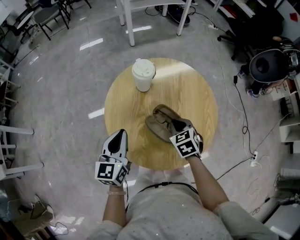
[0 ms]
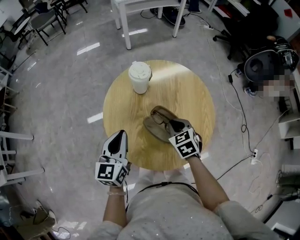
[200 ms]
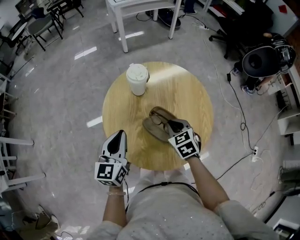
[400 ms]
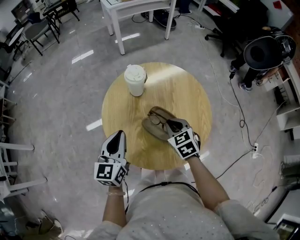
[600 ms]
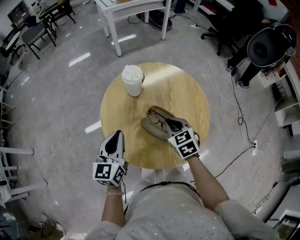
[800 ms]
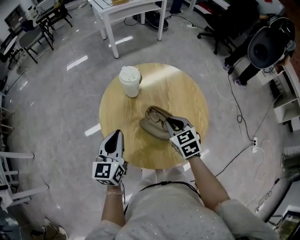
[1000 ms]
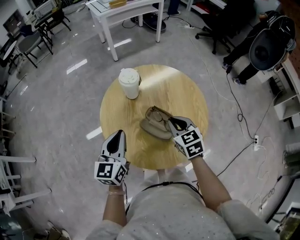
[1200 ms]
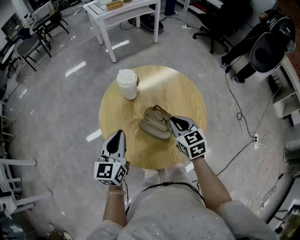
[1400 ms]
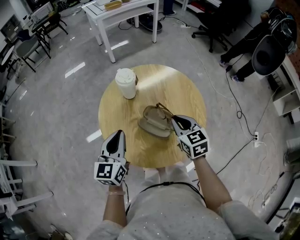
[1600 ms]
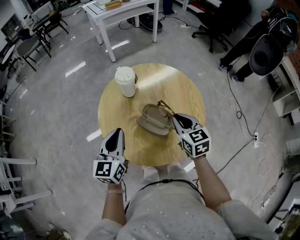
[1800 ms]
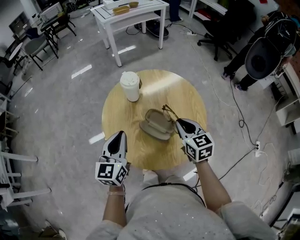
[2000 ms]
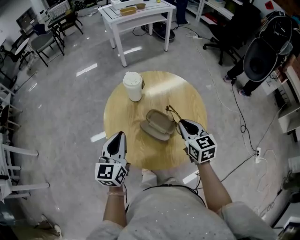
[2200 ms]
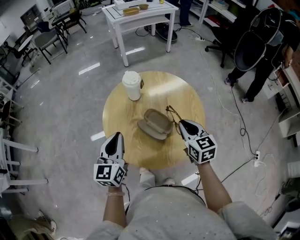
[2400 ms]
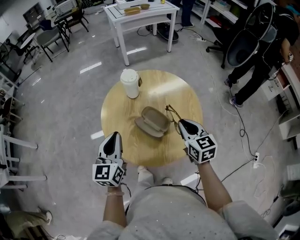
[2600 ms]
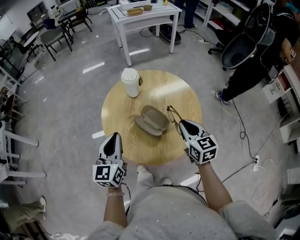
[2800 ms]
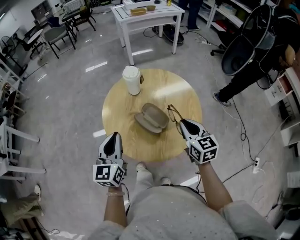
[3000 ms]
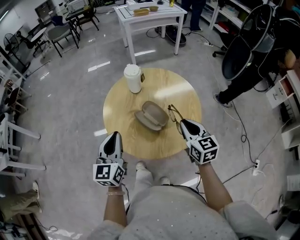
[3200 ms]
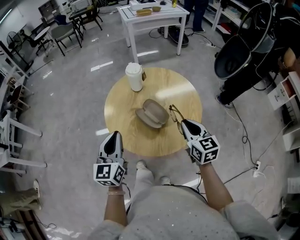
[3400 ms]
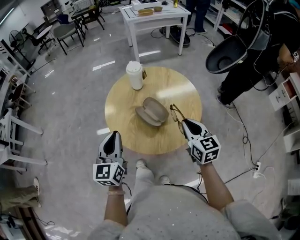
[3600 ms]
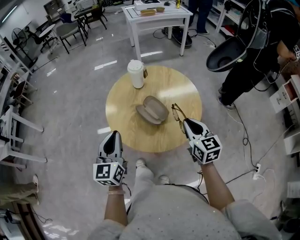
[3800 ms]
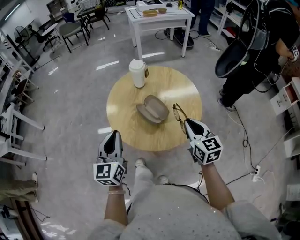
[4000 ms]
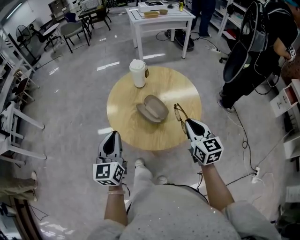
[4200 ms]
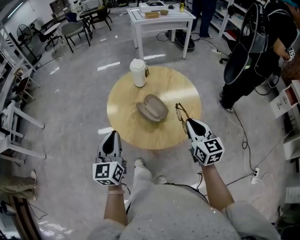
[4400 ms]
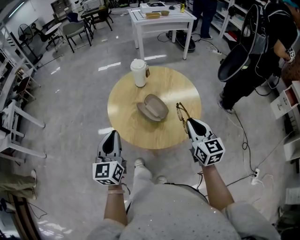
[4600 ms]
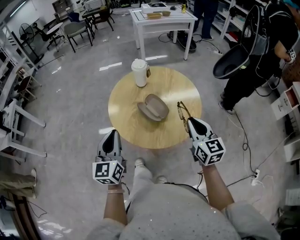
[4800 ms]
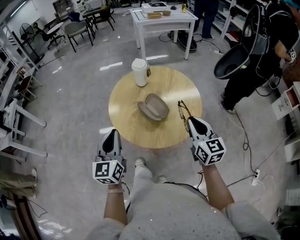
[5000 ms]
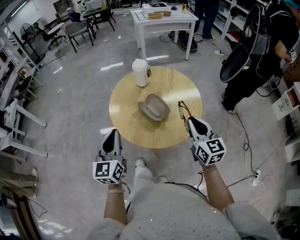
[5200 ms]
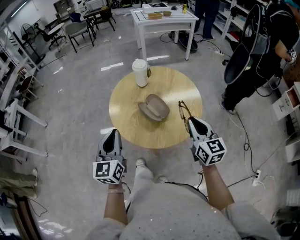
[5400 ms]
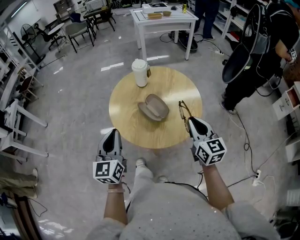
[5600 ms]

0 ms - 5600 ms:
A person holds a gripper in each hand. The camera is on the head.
0 ms - 1400 ms: The right gripper goes approximately 10 cm upward, and rotates some 20 degrees.
1400 ms - 2800 ms: The left gripper is displaced backward by approximately 5 cm. Meanwhile the right gripper moves to the right, about 5 cm.
2800 ms - 4200 ms: Both grippers travel together backward, approximately 10 cm.
4200 ms - 5600 ms: The grippers make only small movements.

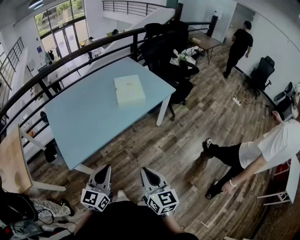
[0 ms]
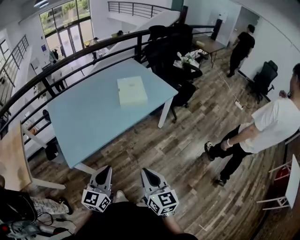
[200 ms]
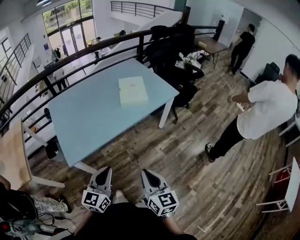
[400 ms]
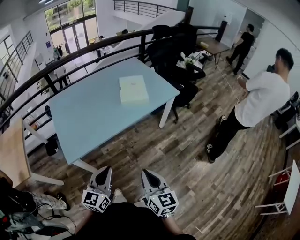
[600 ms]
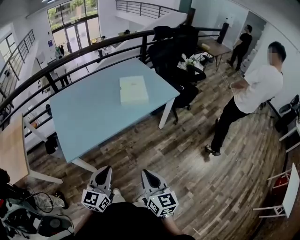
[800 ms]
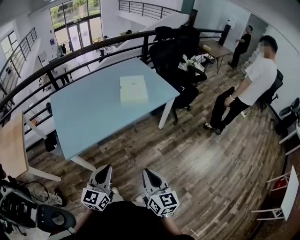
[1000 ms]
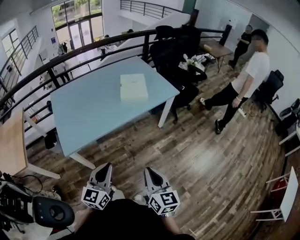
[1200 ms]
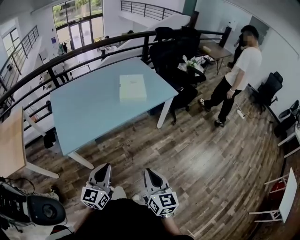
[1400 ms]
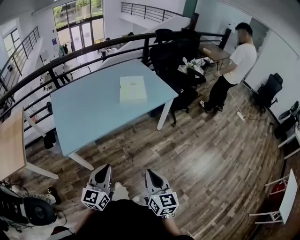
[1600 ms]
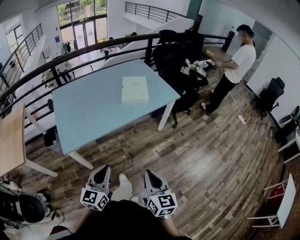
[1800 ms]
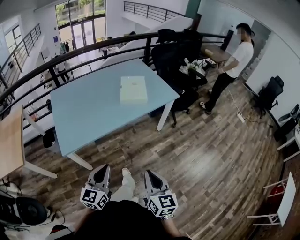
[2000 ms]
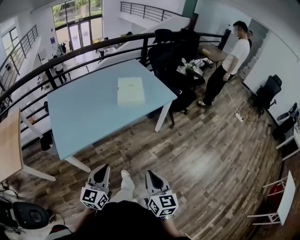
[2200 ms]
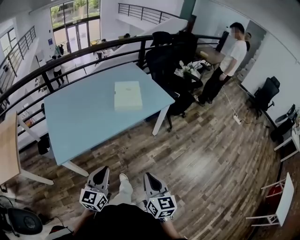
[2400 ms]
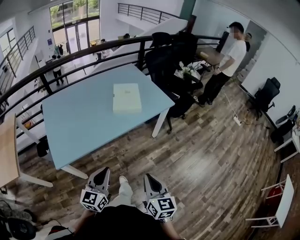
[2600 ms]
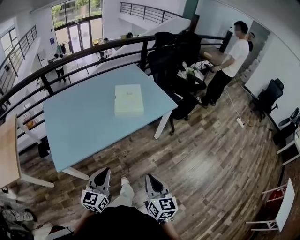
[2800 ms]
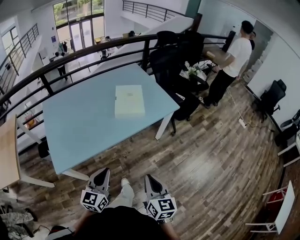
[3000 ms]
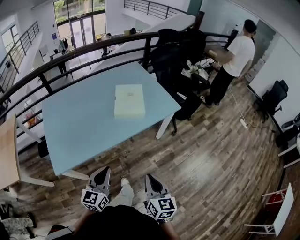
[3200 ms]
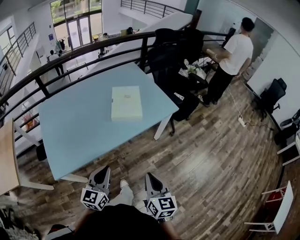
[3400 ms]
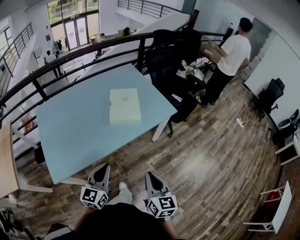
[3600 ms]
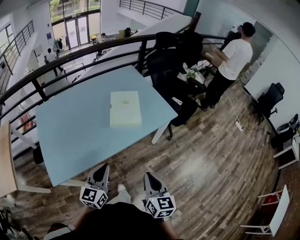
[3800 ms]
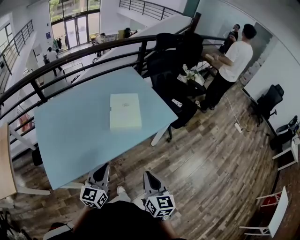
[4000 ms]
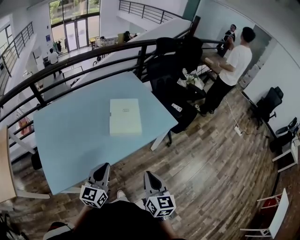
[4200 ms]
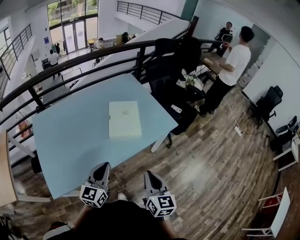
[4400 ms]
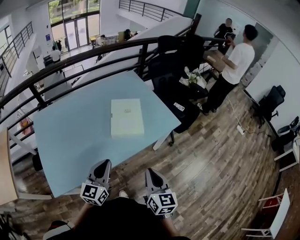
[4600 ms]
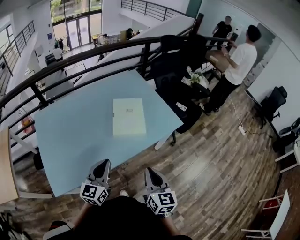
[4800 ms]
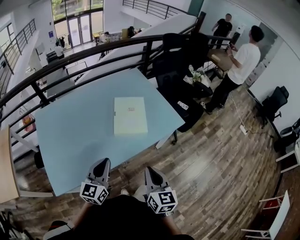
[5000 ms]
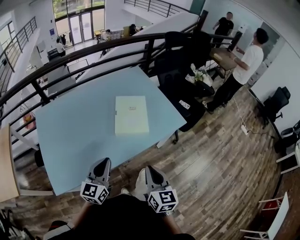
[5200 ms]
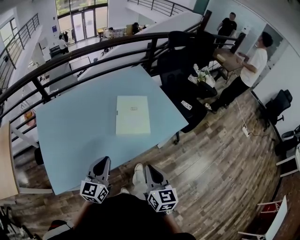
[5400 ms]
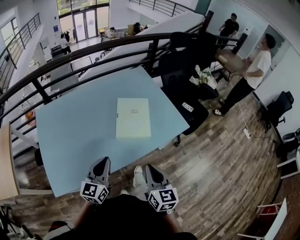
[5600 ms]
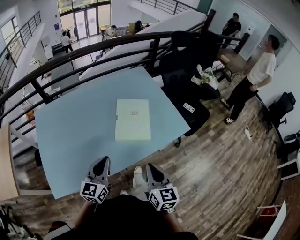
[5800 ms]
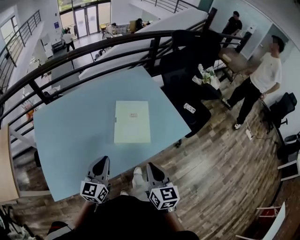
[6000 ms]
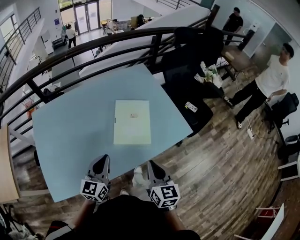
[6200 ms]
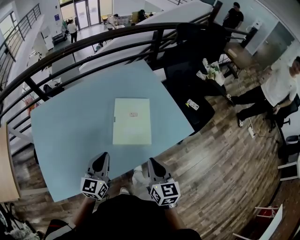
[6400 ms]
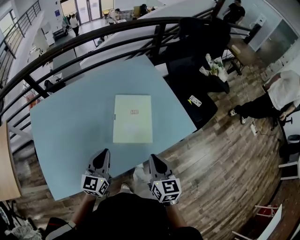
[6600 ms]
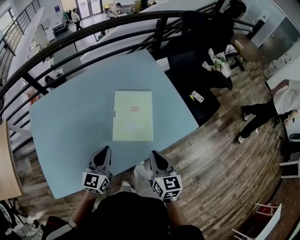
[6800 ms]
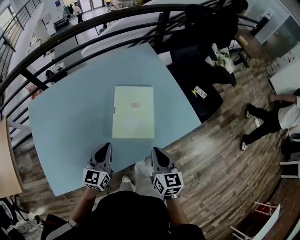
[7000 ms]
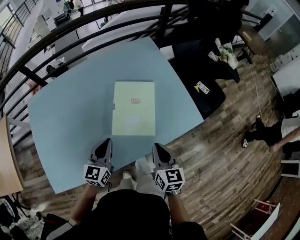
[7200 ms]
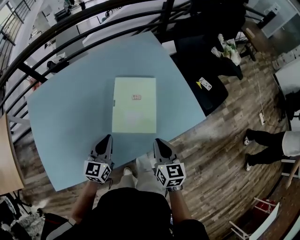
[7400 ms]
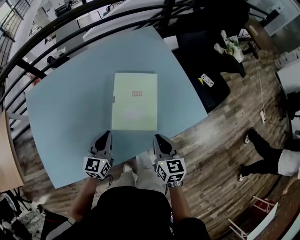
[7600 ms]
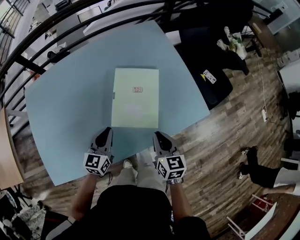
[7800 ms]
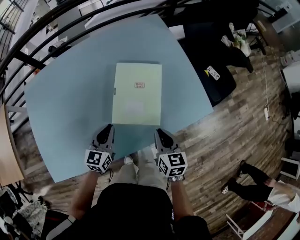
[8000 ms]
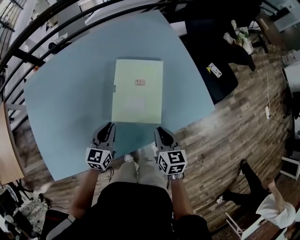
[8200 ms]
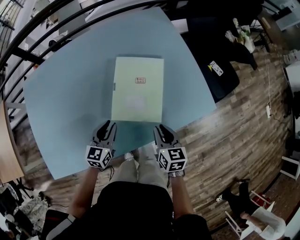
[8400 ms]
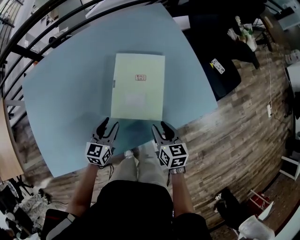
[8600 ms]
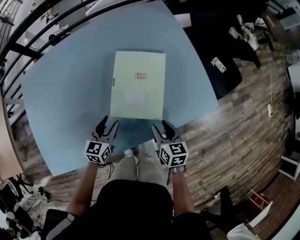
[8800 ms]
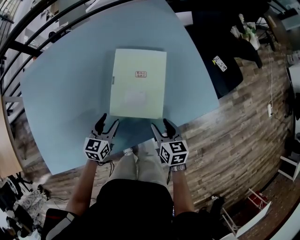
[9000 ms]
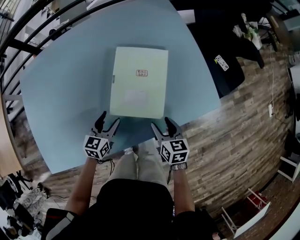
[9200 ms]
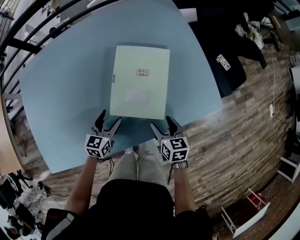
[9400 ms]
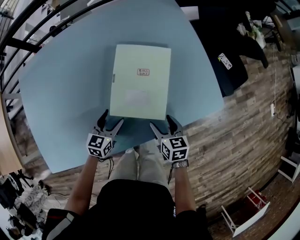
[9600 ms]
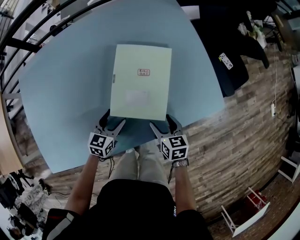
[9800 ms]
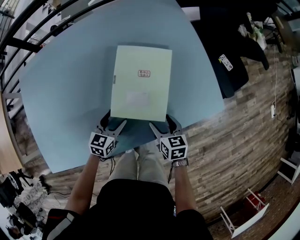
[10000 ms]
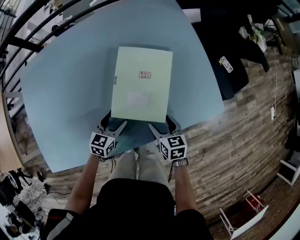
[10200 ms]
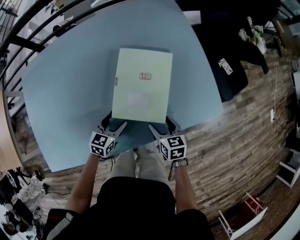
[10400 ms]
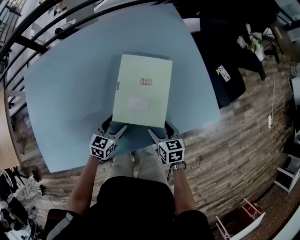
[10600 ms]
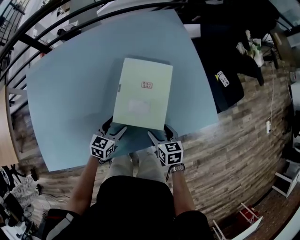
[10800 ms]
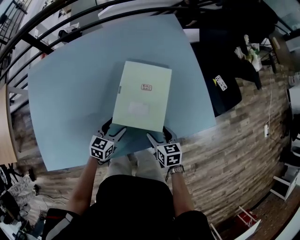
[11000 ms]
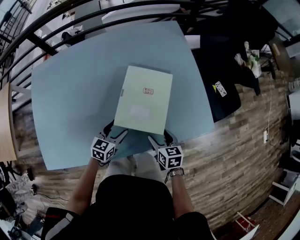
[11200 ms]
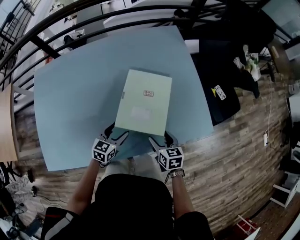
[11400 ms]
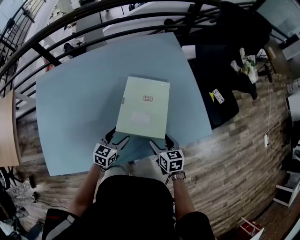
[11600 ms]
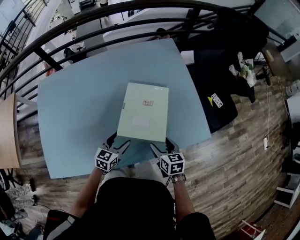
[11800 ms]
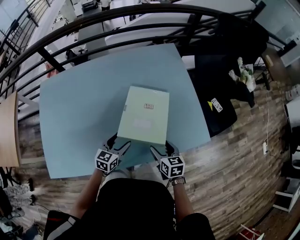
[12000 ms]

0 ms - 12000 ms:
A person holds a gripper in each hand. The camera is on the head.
0 ms - 1600 ms: The right gripper shifts about 10 cm to the right; the left gripper goes about 10 cm to the right and backward.
1600 ms - 3000 ms: Both grippers move forward, some 15 cm.
3000 ms - 4400 ms: Both grippers move forward, some 20 cm.
4400 ms - 6000 ms: Both grippers travel together forward, roughly 15 cm.
6000 ms - 7600 ms: The left gripper travels downward and forward by roughly 20 cm; the right gripper shifts roughly 20 cm forward and downward.
7600 ms - 9000 ms: The two grippers go about 15 cm downward. The right gripper opens its fingers; the left gripper opens its fingers.
9000 ms - 10400 ms: The grippers move only a little.
10400 ms - 12000 ms: The two grippers go some 10 cm upward.

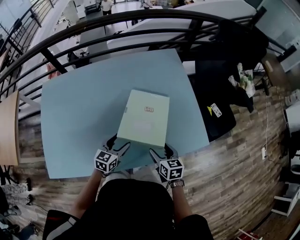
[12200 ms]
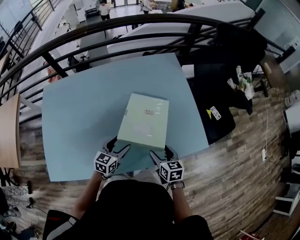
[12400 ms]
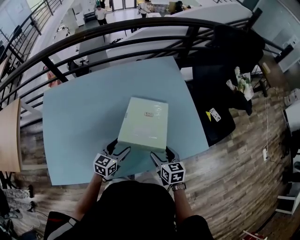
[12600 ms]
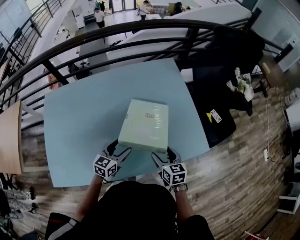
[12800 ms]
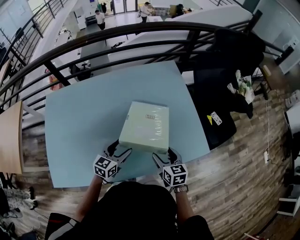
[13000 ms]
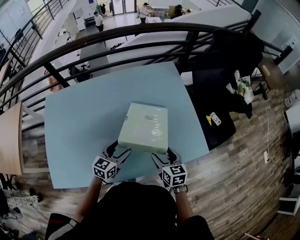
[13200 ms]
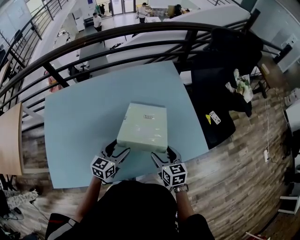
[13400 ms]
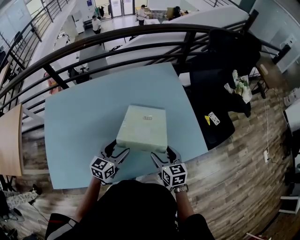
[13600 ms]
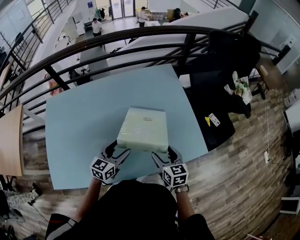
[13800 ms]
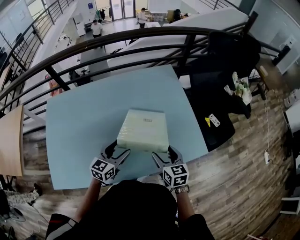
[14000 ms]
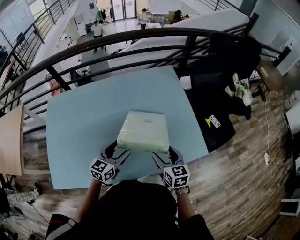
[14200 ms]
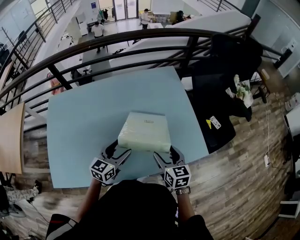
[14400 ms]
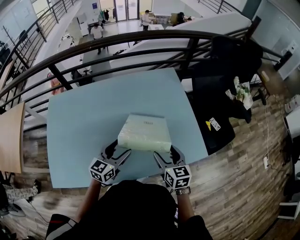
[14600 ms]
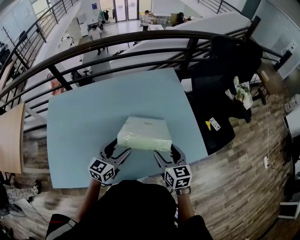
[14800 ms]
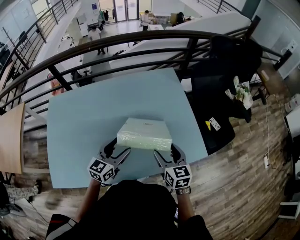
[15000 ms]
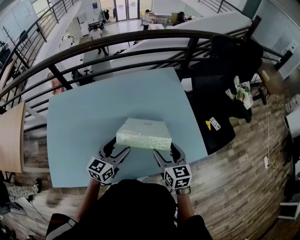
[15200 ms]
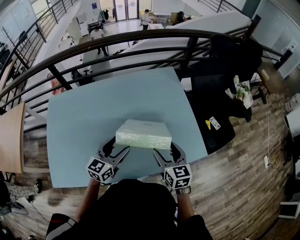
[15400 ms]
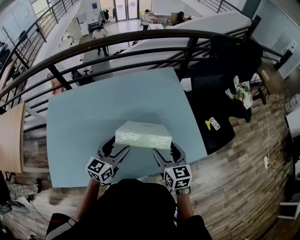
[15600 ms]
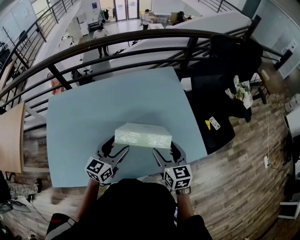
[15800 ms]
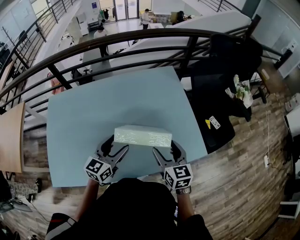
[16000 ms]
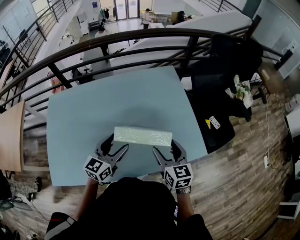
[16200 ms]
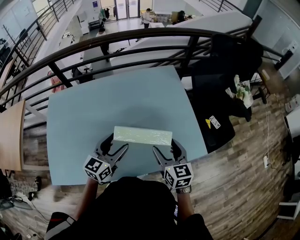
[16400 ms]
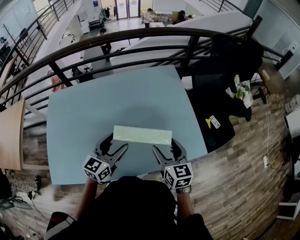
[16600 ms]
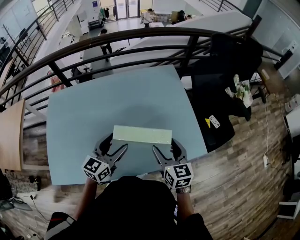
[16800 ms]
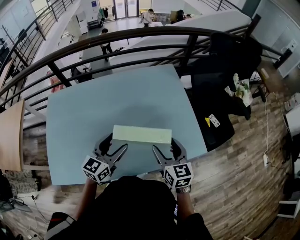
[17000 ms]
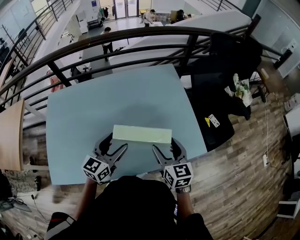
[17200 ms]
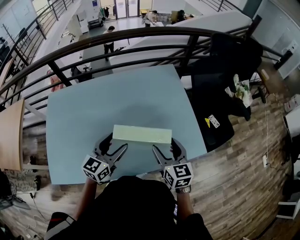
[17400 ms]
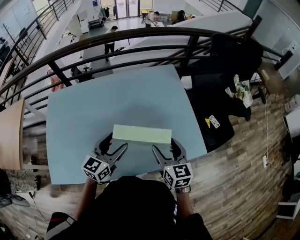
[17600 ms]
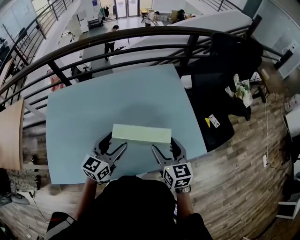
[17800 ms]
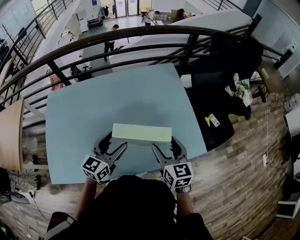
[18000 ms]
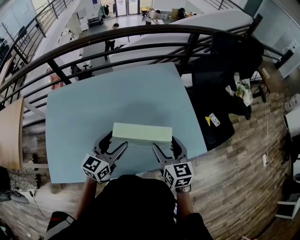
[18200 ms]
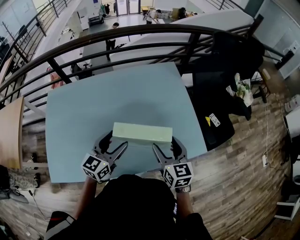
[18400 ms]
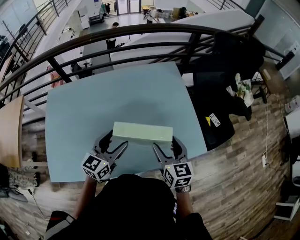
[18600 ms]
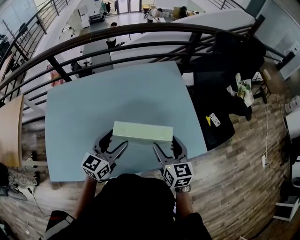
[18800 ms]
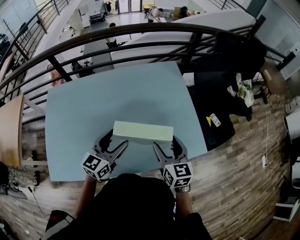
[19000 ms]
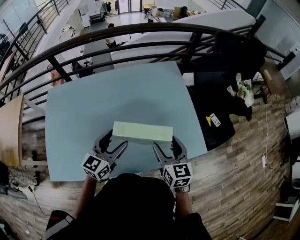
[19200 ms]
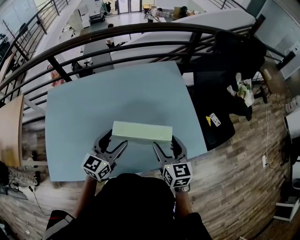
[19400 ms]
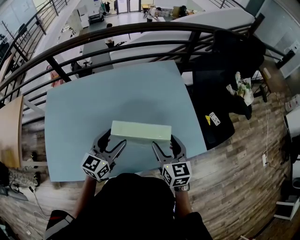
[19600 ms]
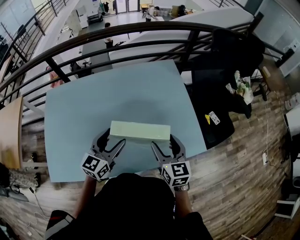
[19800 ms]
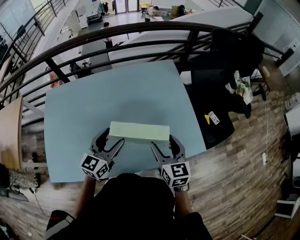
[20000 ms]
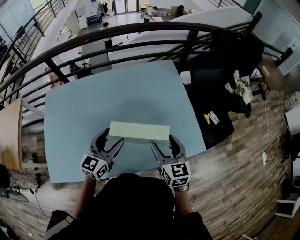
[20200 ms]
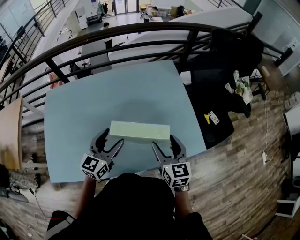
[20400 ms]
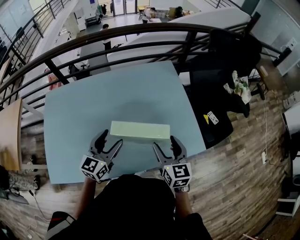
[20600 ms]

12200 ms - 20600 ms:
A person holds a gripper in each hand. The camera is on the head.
12200 ms - 13600 ms: The two grippers go roughly 10 cm upward.
13600 ms - 15000 ms: Both grippers travel together upward, roughly 5 cm.
15000 ms - 16400 ms: There are only small adjustments of the grippers.
16400 ms - 19200 ms: Neither gripper changes place.
19200 ms - 20600 ms: There are only small adjustments of the grippers.
